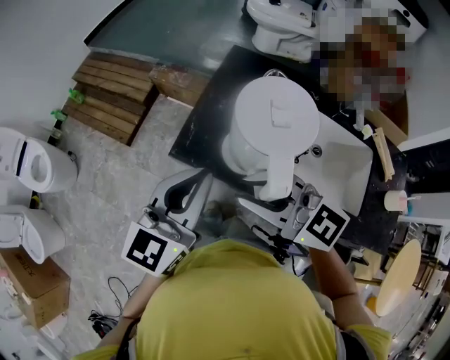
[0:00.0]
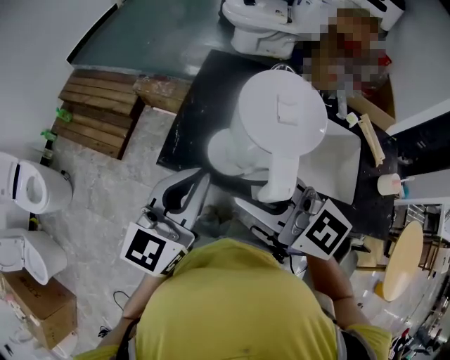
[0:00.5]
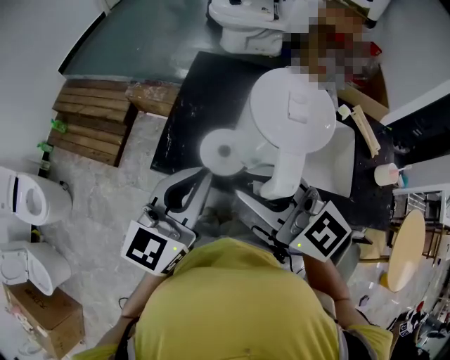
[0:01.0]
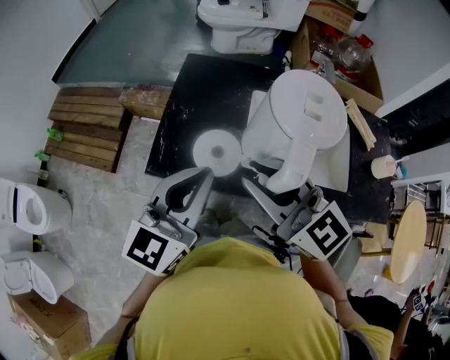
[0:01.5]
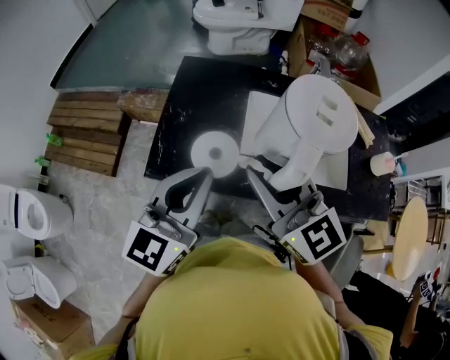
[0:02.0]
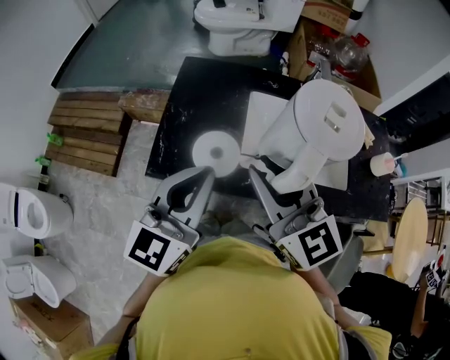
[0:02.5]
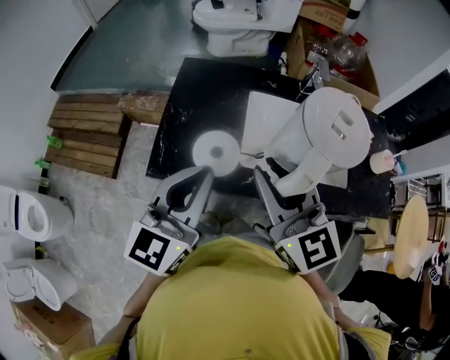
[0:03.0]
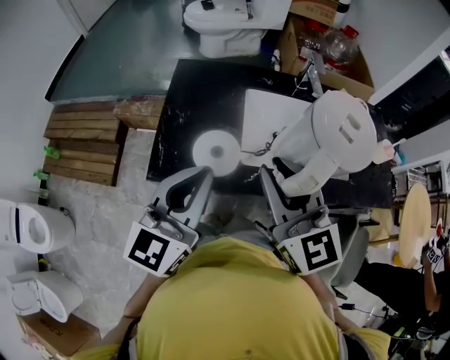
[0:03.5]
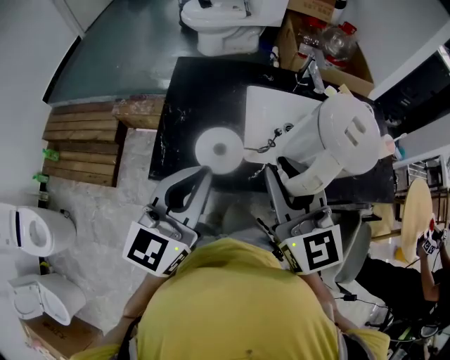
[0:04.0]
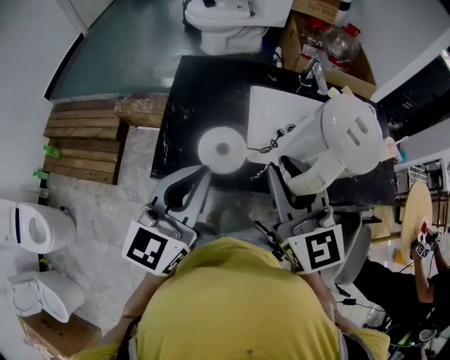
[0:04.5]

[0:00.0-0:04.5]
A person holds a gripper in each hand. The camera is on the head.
0:00.0 to 0:02.0: The left gripper changes place by approximately 5 cm. Meanwhile the right gripper changes place by about 10 cm, and swivels roughly 40 degrees.
0:02.0 to 0:04.5: The right gripper turns by roughly 20 degrees.

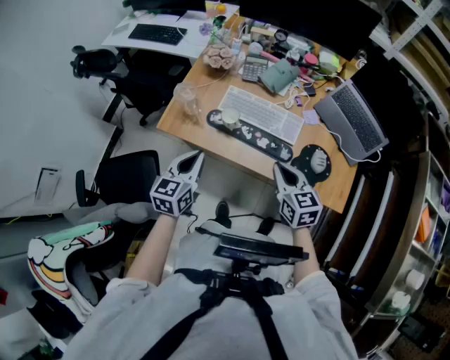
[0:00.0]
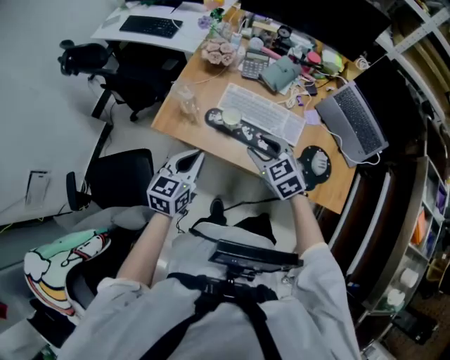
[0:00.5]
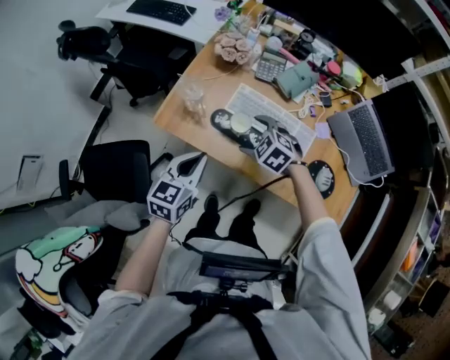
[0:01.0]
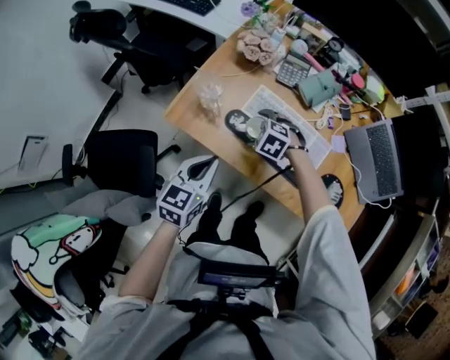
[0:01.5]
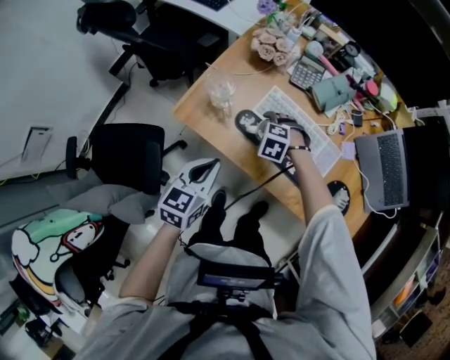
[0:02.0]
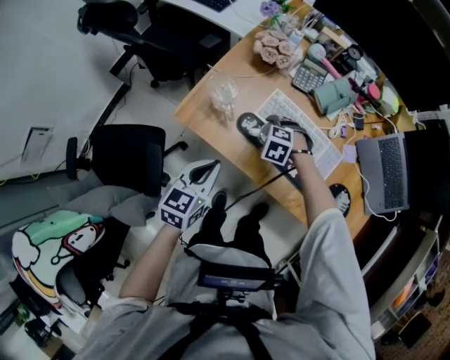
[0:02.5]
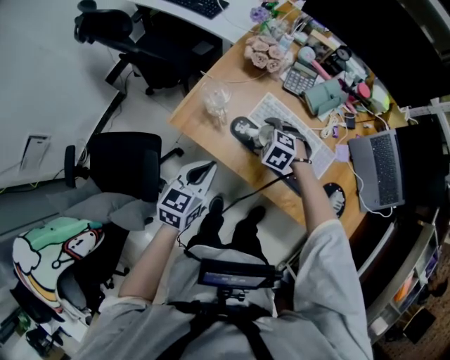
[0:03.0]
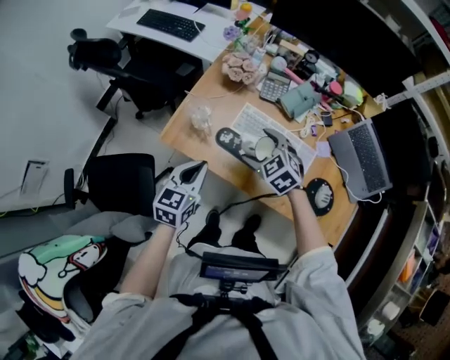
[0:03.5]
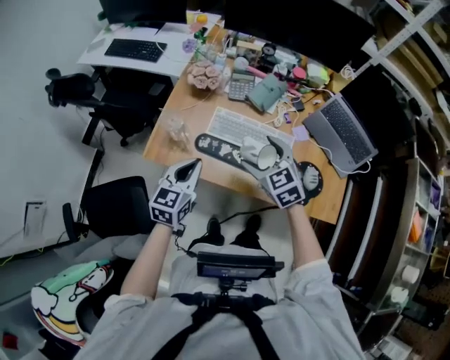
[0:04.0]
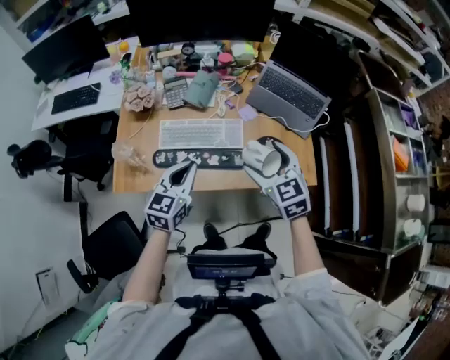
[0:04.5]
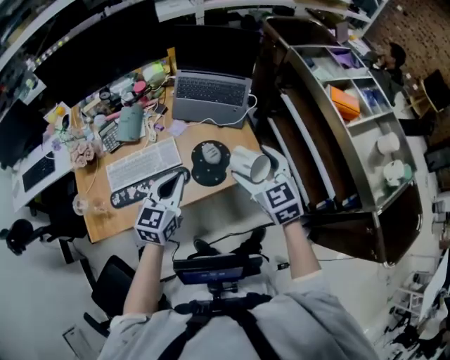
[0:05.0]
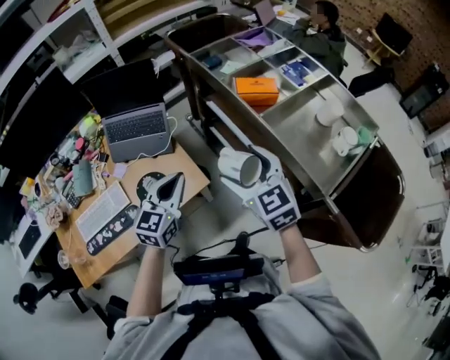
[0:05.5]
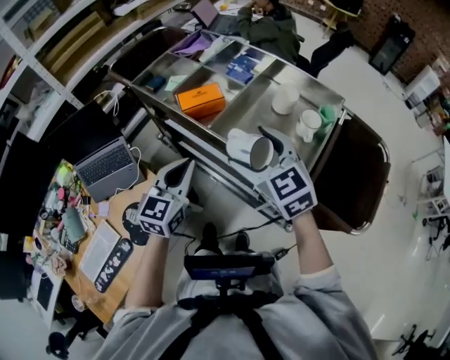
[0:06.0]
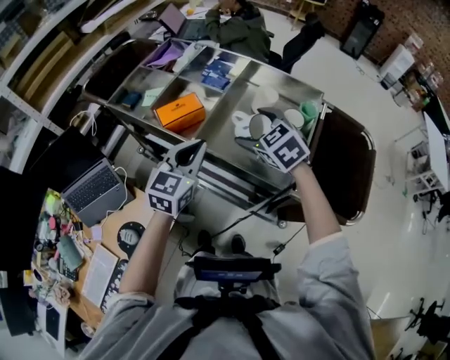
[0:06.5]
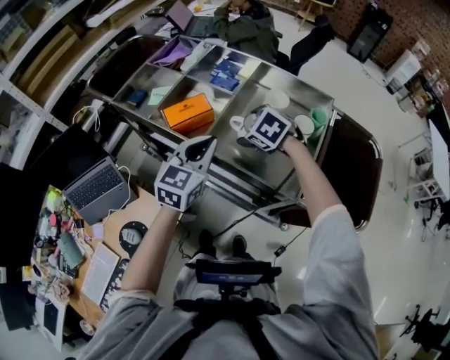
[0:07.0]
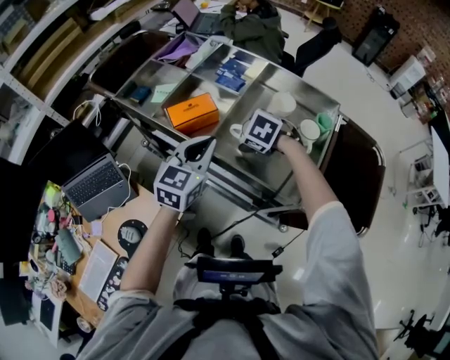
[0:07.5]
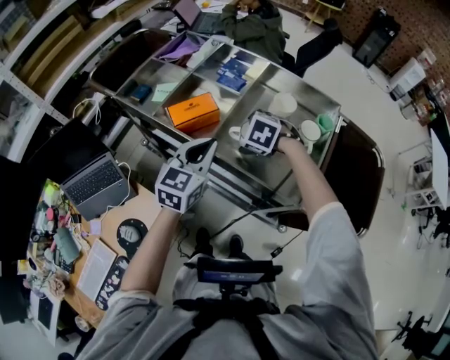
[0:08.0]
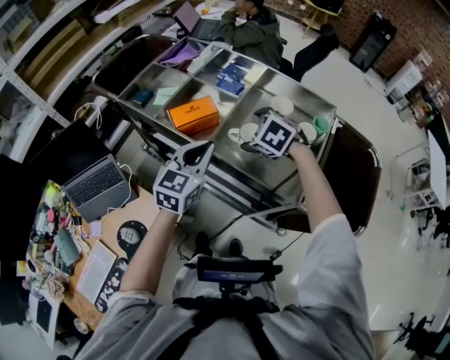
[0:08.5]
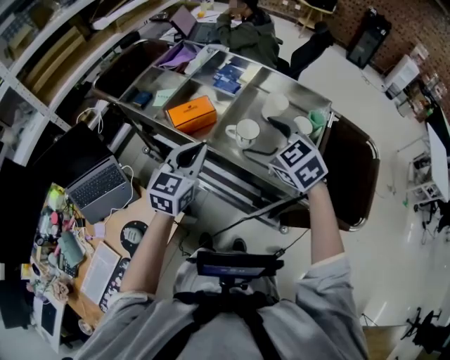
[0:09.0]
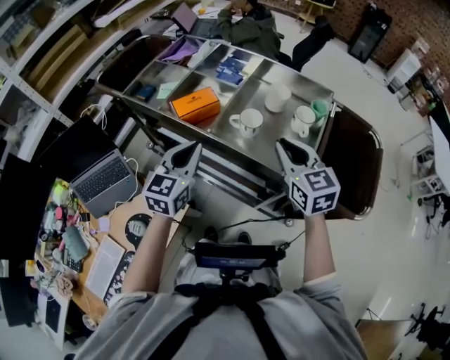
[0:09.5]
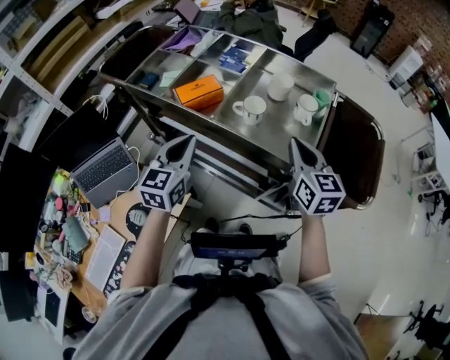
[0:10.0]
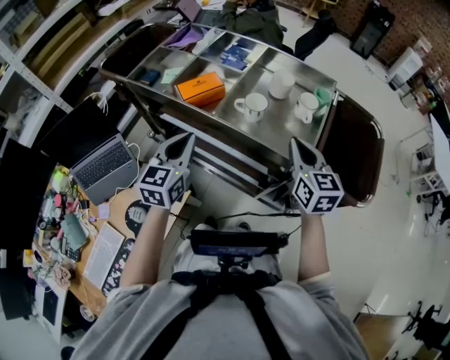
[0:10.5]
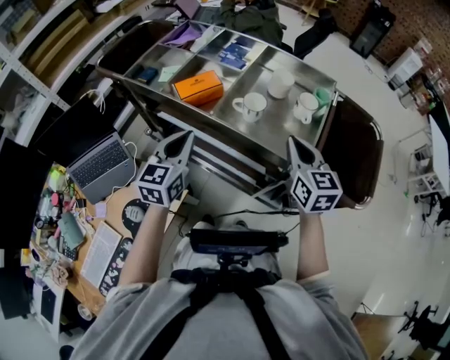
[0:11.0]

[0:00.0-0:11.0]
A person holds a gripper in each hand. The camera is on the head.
0:00.0 to 0:02.0: The left gripper goes about 10 cm downward; the right gripper ends up about 35 cm from where it was, tilts its fingers approximately 50 degrees downward, and opens.
0:02.0 to 0:03.5: The right gripper is displaced upward by about 15 cm, and angles its fingers upward, by approximately 30 degrees.
0:03.5 to 0:05.5: The two grippers travel together, roughly 70 cm. The right gripper rotates roughly 80 degrees, while the left gripper swivels approximately 60 degrees.
0:05.5 to 0:07.5: The left gripper shifts by approximately 30 cm, and rotates some 30 degrees. The right gripper changes place by roughly 30 cm, and tilts its fingers approximately 40 degrees downward.
0:07.5 to 0:09.0: The right gripper moves upward and backward, roughly 15 cm, and angles its fingers upward, by about 30 degrees.
0:09.0 to 0:11.0: The right gripper heads to the right and backward, covering about 10 cm, rotates some 40 degrees, and closes, while the left gripper shifts approximately 5 cm to the left.

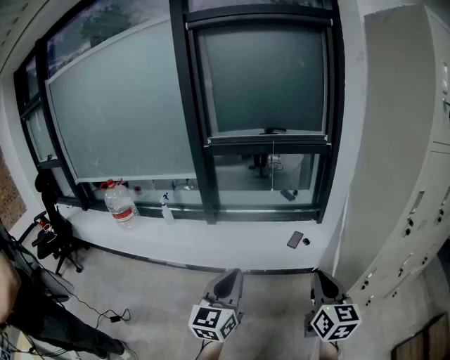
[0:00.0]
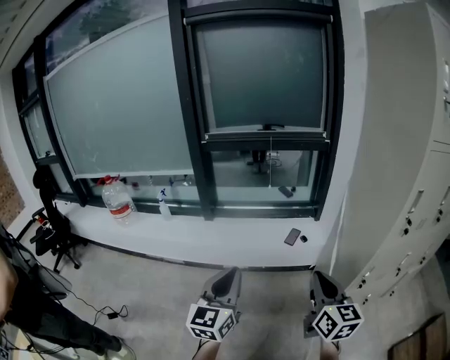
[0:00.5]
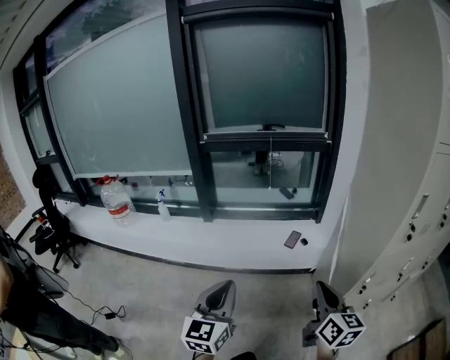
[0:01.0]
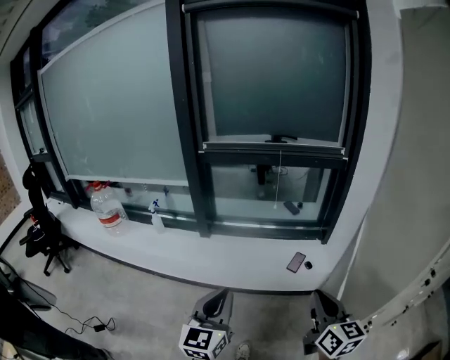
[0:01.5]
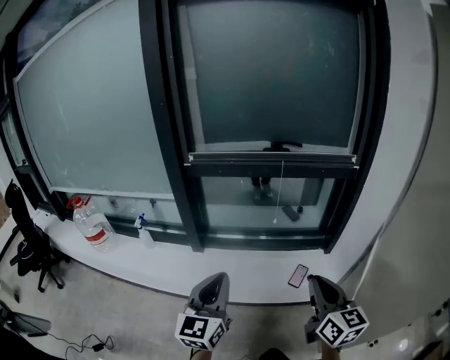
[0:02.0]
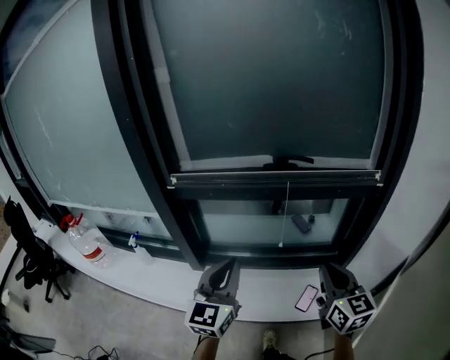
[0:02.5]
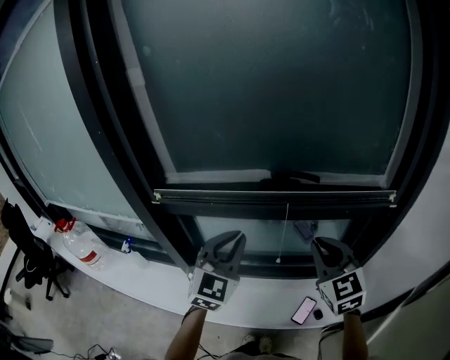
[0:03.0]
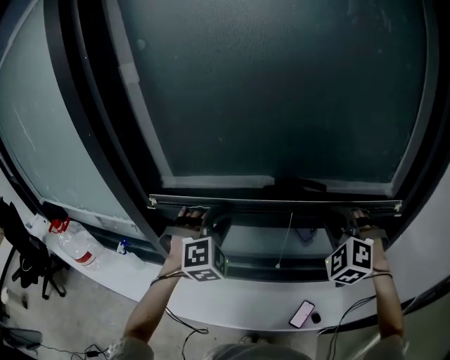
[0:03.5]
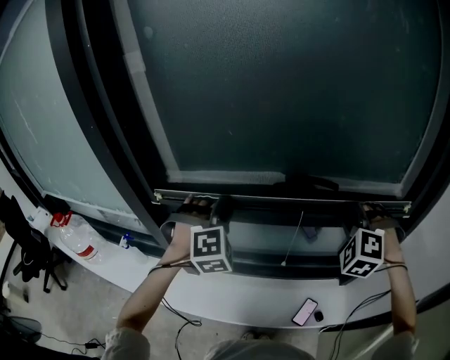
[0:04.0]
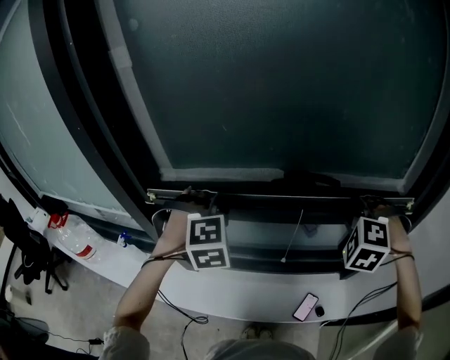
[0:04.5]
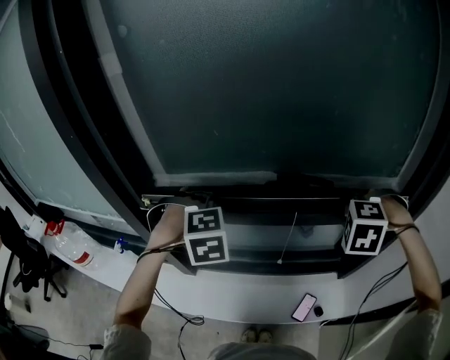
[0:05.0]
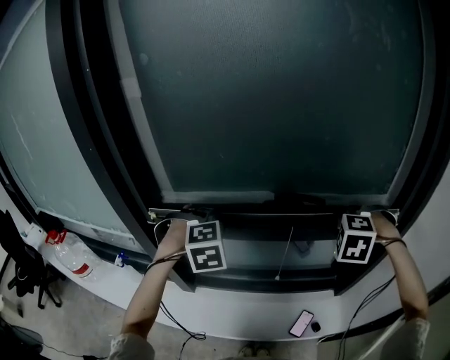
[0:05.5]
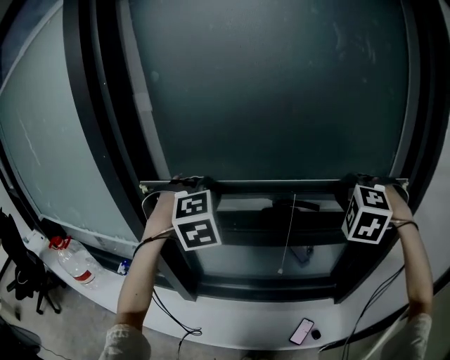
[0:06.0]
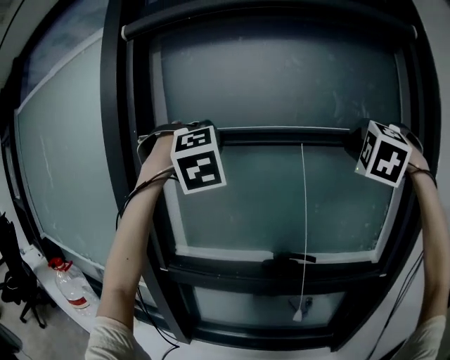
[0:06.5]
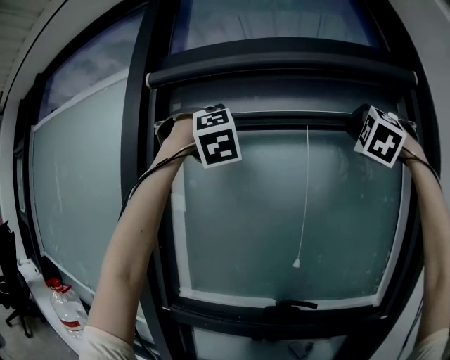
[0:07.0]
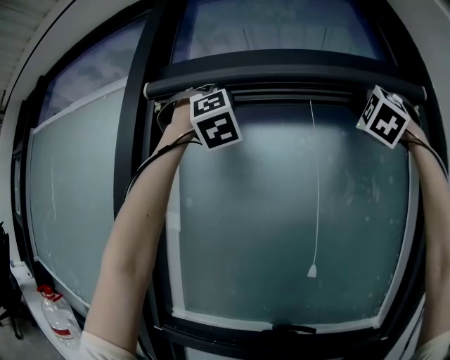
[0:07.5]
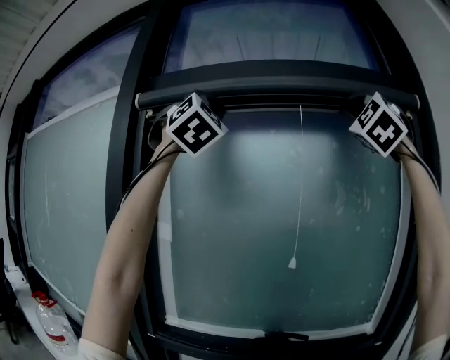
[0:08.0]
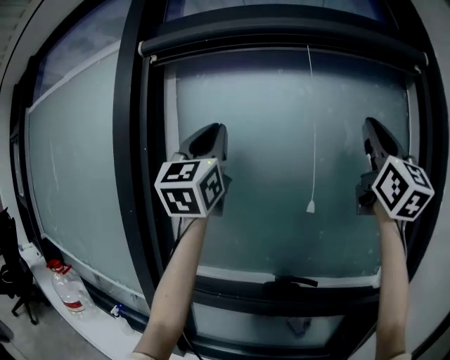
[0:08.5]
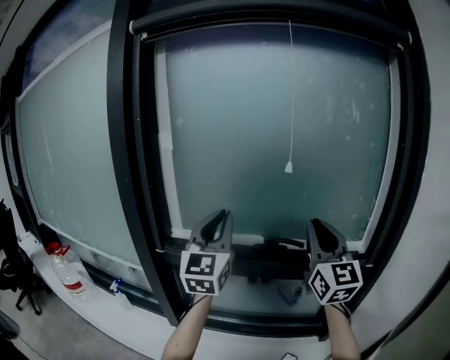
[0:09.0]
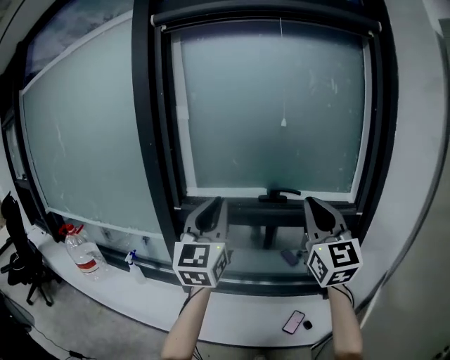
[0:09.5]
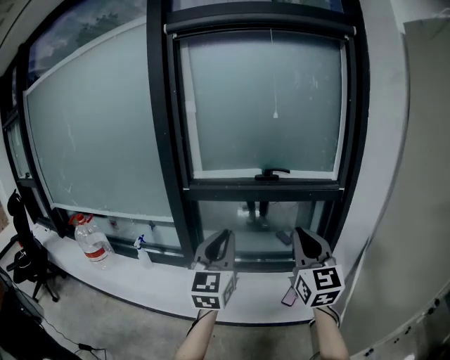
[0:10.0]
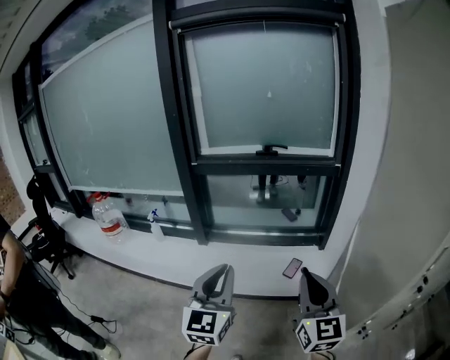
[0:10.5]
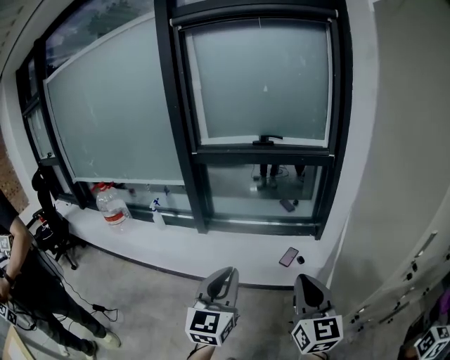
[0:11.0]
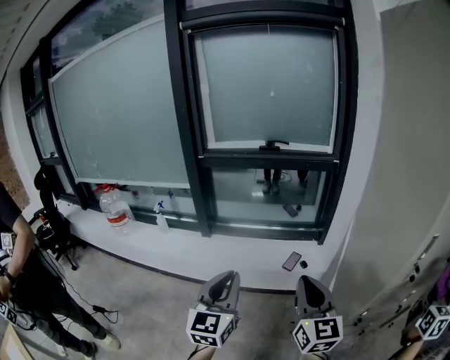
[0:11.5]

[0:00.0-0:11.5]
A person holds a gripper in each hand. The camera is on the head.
0:00.0 to 0:02.0: The grippers both shift forward by approximately 35 cm.
0:02.0 to 0:04.0: The two grippers travel together, forward, roughly 50 cm. The right gripper rolls counterclockwise, seen from behind, by approximately 90 degrees. The left gripper rotates around the line of its fingers by some 80 degrees, clockwise from behind.
0:04.0 to 0:06.0: The grippers both shift upward by about 15 cm.
0:06.0 to 0:07.5: The two grippers go approximately 60 cm upward. The right gripper tips its fingers upward by about 60 degrees; the left gripper tips its fingers upward by some 60 degrees.
0:07.5 to 0:09.5: Both grippers move downward and backward, approximately 60 cm. The right gripper rotates around the line of its fingers by approximately 70 degrees, clockwise from behind. Meanwhile the left gripper rotates around the line of its fingers by roughly 80 degrees, counterclockwise from behind.
0:09.5 to 0:11.5: The two grippers travel together, backward, some 50 cm. The grippers both shift downward by roughly 20 cm. The left gripper changes its angle by about 20 degrees. The right gripper changes its angle by roughly 20 degrees.
